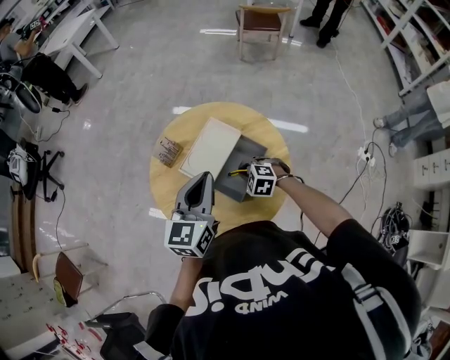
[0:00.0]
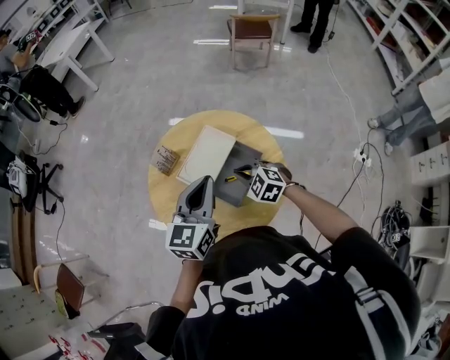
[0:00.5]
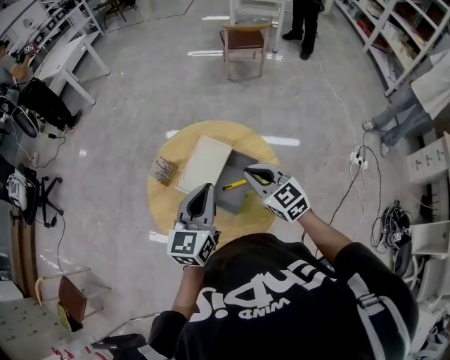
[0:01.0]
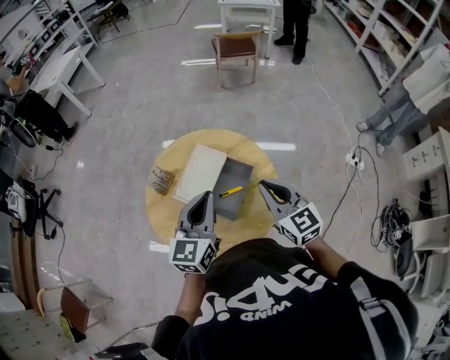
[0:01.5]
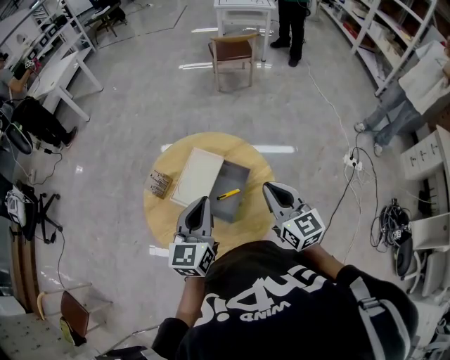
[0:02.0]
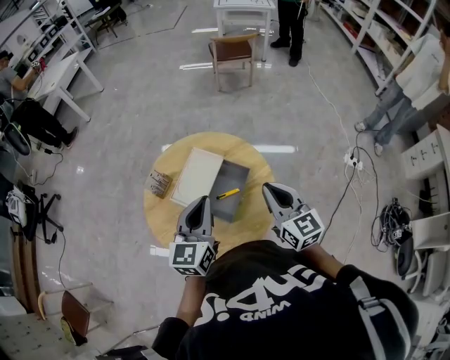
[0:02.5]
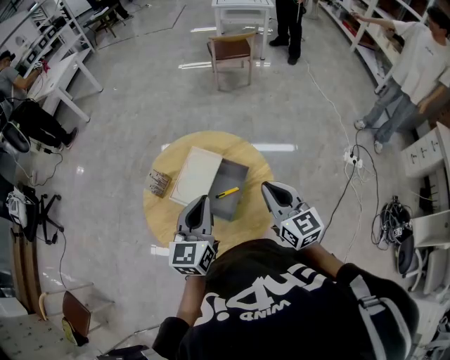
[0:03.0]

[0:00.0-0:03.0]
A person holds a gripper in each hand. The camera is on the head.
0:00.0 to 0:01.5: The right gripper travels upward by approximately 25 cm, and points its fingers roughly 50 degrees further upward.
0:01.5 to 0:03.0: The grippers make only small movements.

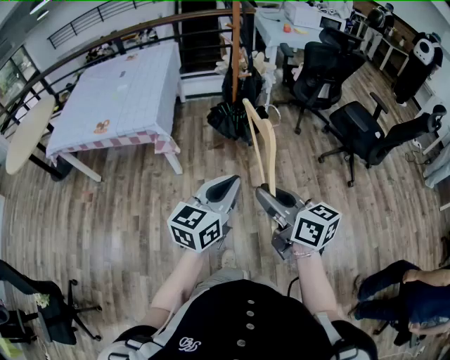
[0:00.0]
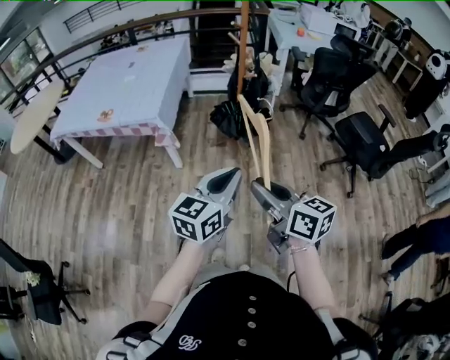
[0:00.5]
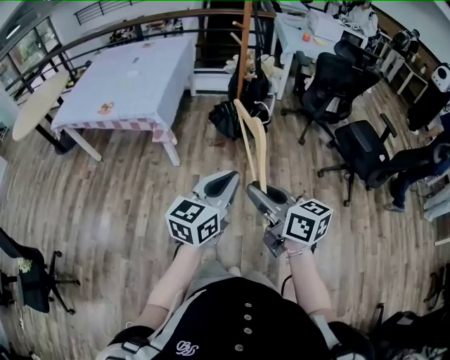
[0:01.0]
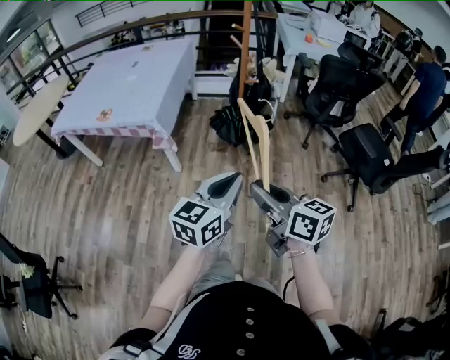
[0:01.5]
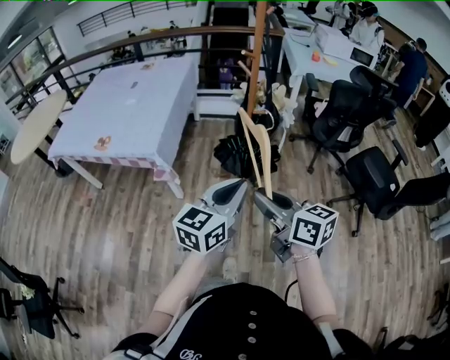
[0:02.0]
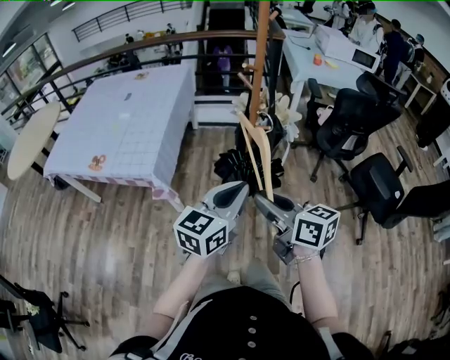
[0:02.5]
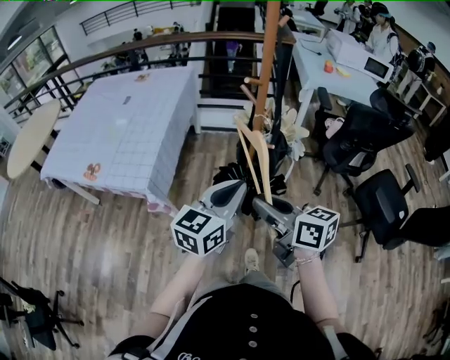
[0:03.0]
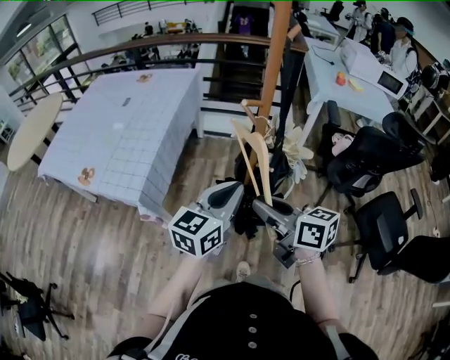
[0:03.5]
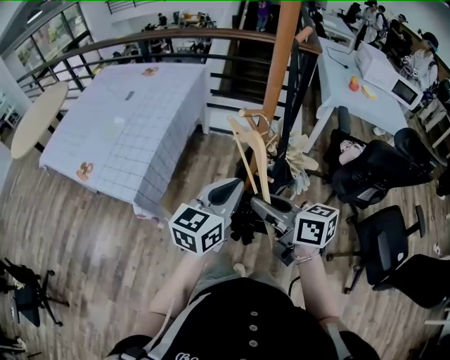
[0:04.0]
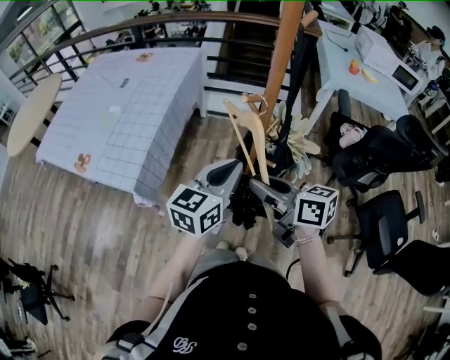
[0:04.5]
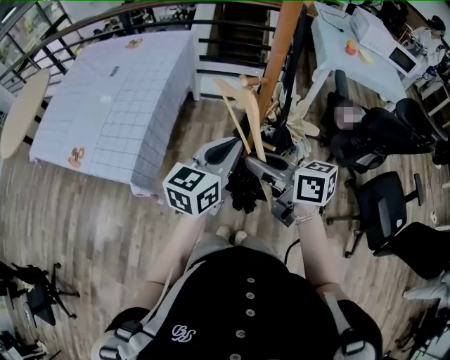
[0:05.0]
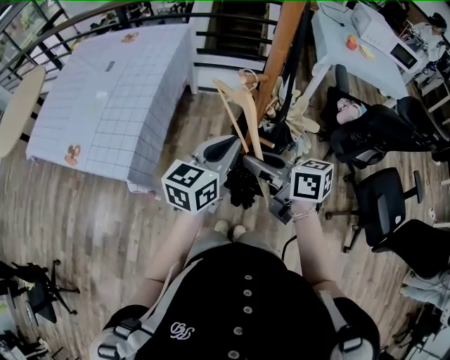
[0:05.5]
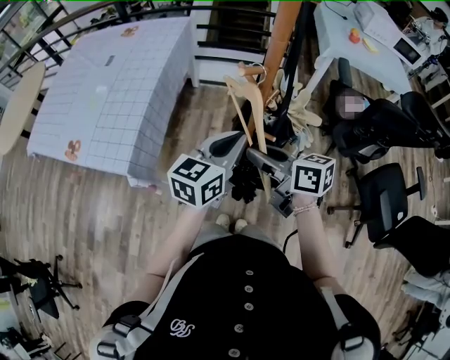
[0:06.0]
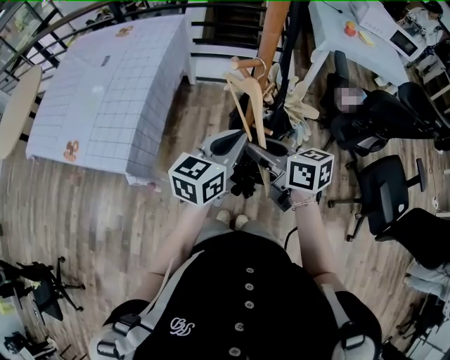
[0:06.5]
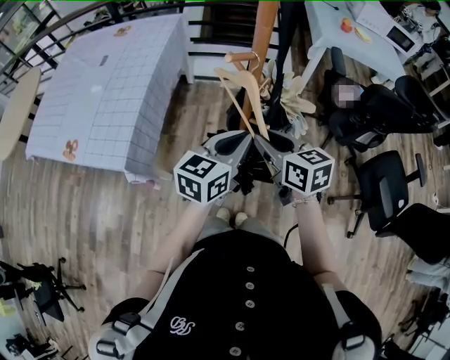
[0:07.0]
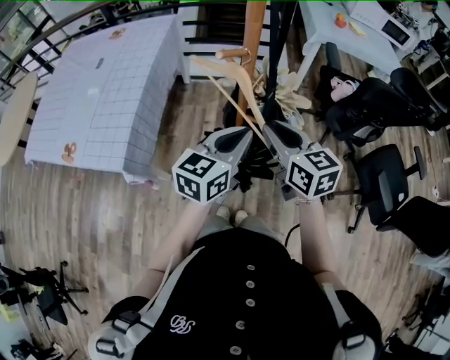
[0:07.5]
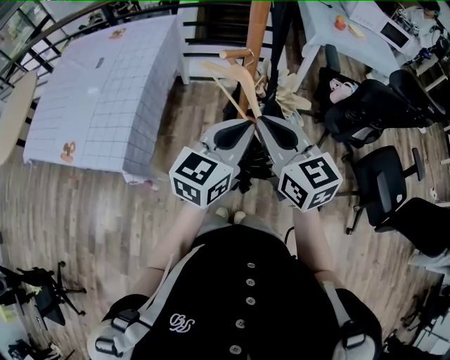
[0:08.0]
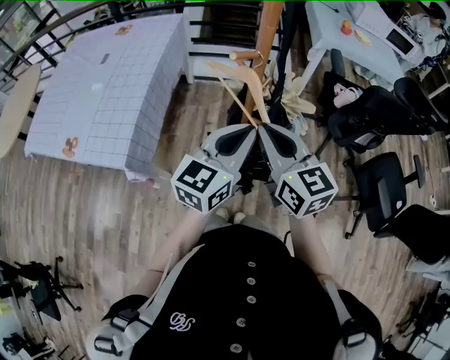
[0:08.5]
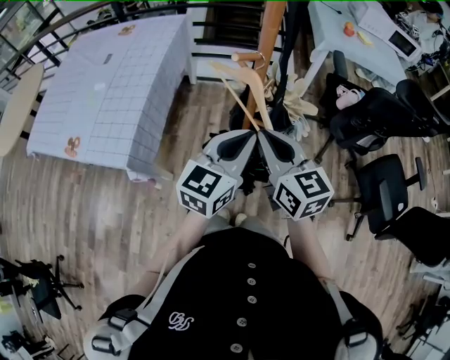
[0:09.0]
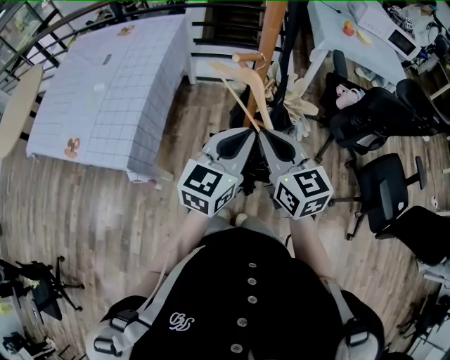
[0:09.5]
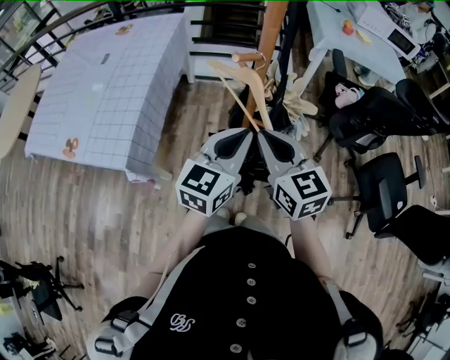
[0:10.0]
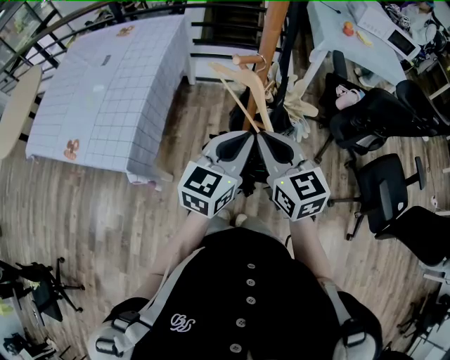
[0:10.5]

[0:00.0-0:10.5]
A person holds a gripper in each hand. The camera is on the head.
0:00.0 to 0:02.0: Both grippers travel together forward, about 20 cm.
0:02.0 to 0:04.0: The two grippers go about 35 cm forward.
0:04.0 to 0:06.5: The right gripper changes place by some 5 cm.
0:06.5 to 0:08.5: The left gripper heads upward, covering some 5 cm; the right gripper shifts roughly 10 cm upward, swivels some 30 degrees, and closes.
0:08.5 to 0:10.5: The grippers stay close to where they were, moving slightly.

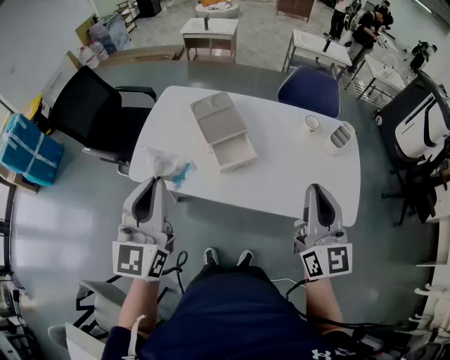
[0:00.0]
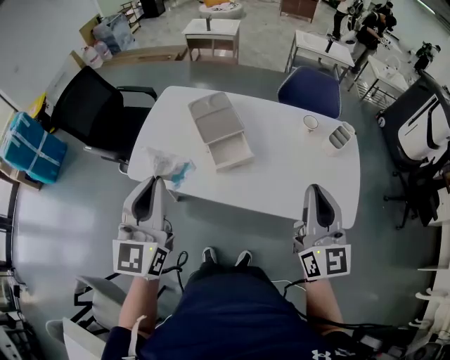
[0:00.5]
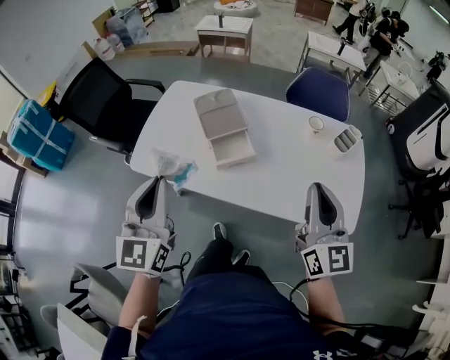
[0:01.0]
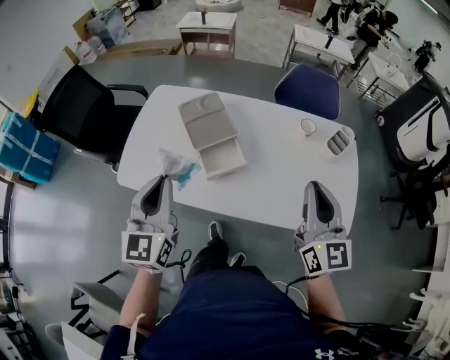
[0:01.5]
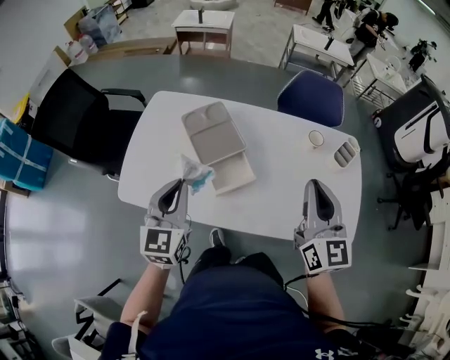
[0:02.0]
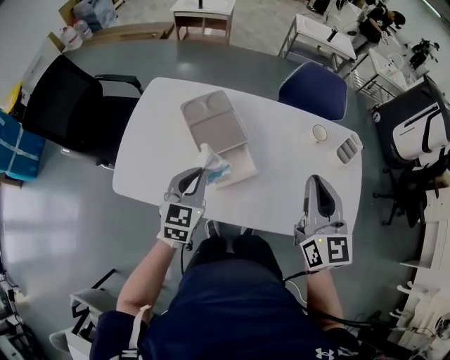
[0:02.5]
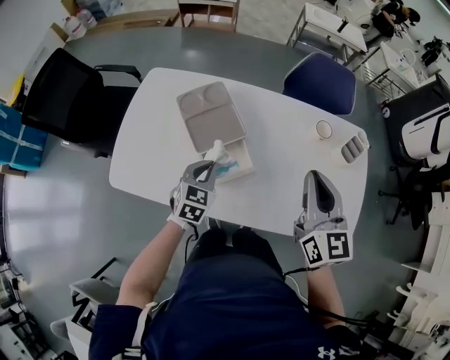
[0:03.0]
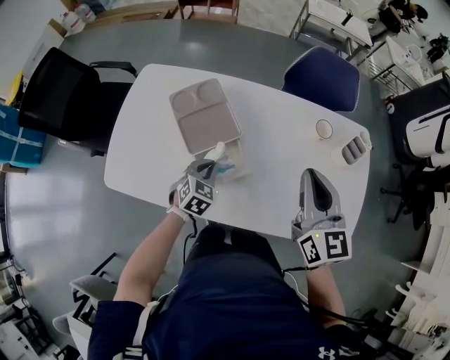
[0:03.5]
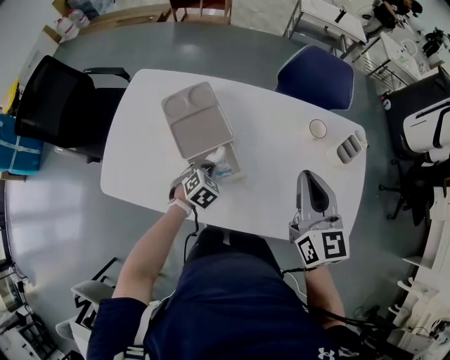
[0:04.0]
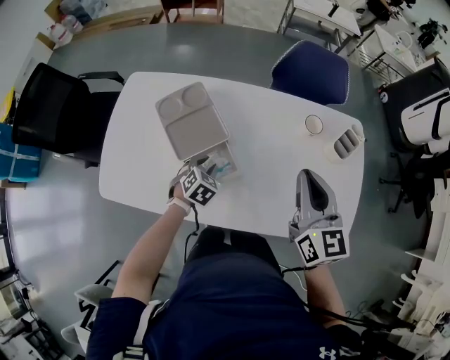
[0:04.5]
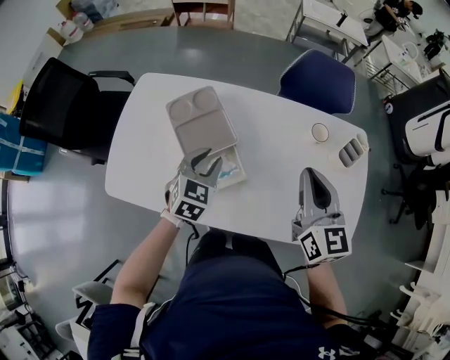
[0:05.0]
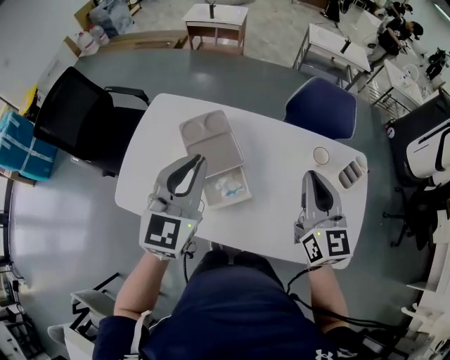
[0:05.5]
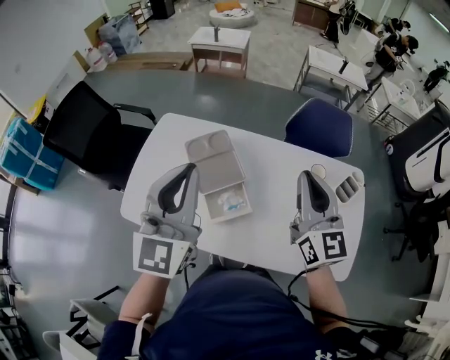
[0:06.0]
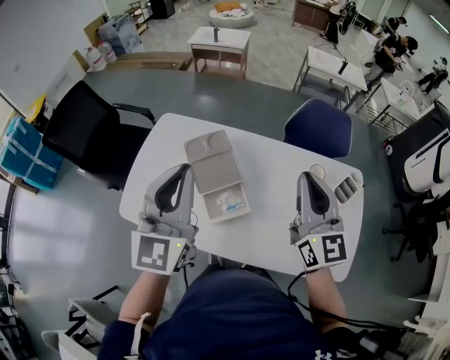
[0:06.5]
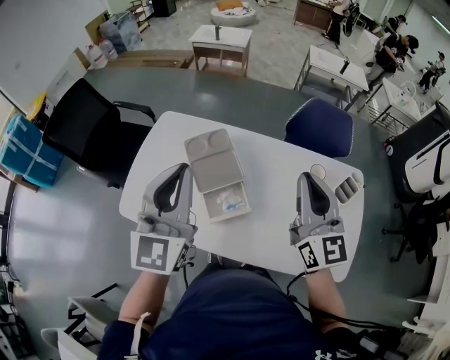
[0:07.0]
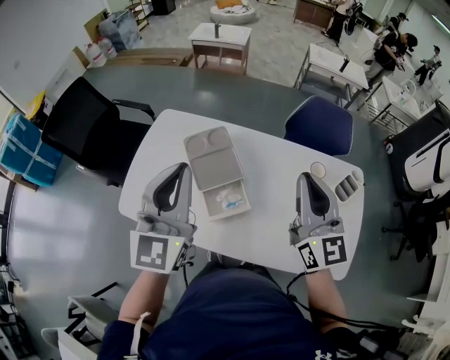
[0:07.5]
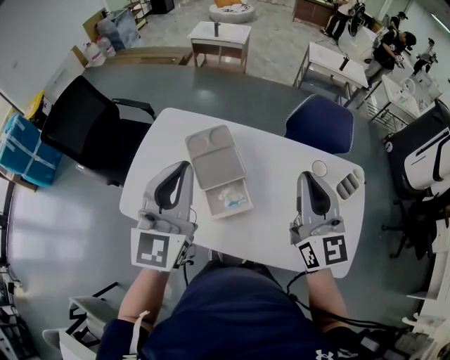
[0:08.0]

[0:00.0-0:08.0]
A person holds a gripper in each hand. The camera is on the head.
0:00.0 to 0:02.0: The left gripper moves forward and downward, approximately 20 cm; the right gripper heads forward, covering about 15 cm.
0:02.0 to 0:04.0: The left gripper goes approximately 30 cm downward and to the right, and tips its fingers downward by approximately 50 degrees. Meanwhile the right gripper heads forward and downward, covering roughly 10 cm.
0:04.0 to 0:06.0: The right gripper goes roughly 10 cm upward. The left gripper heads upward, covering about 50 cm, points its fingers some 60 degrees further upward, and opens, then closes once more.
0:06.0 to 0:08.0: The grippers make only small movements.

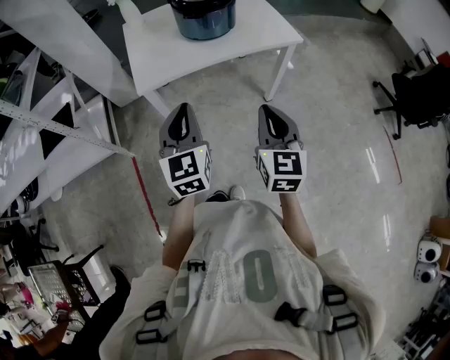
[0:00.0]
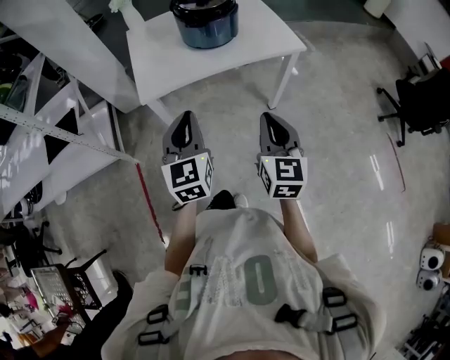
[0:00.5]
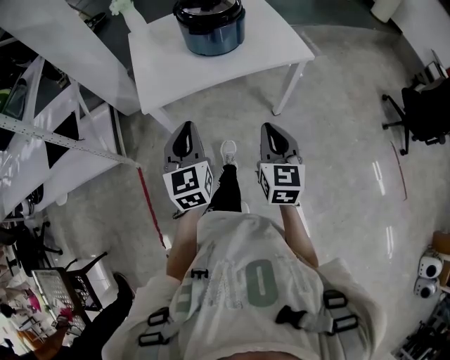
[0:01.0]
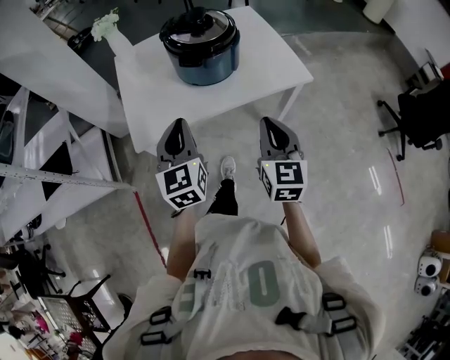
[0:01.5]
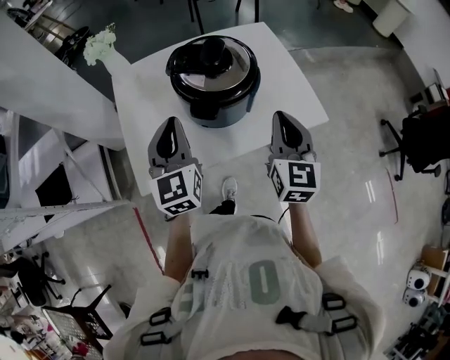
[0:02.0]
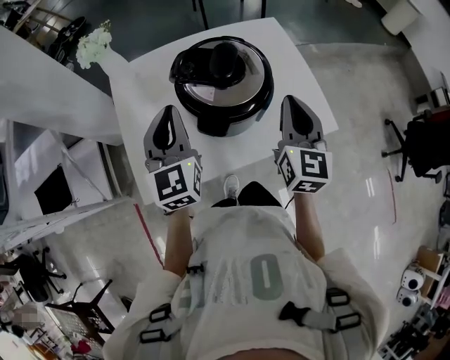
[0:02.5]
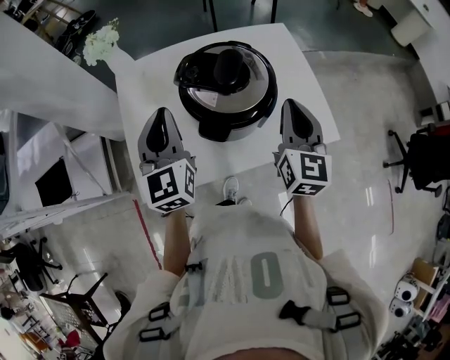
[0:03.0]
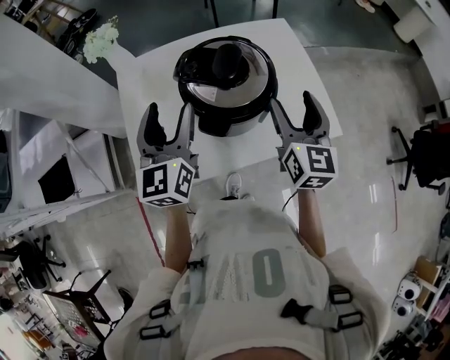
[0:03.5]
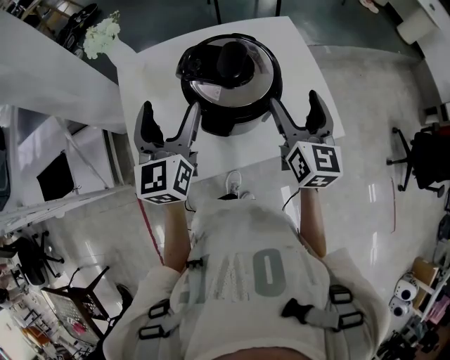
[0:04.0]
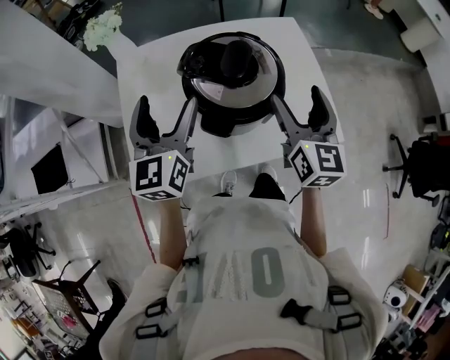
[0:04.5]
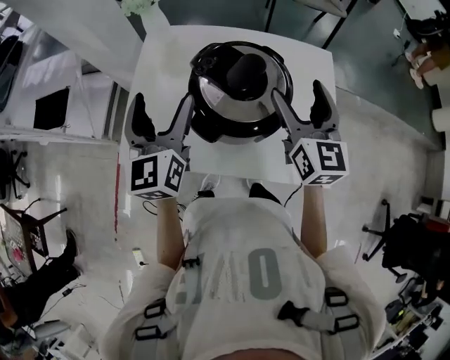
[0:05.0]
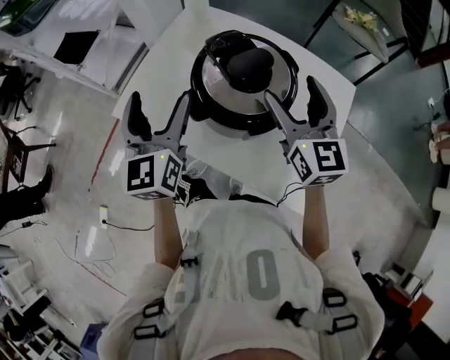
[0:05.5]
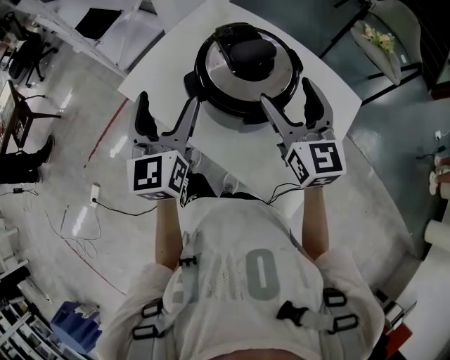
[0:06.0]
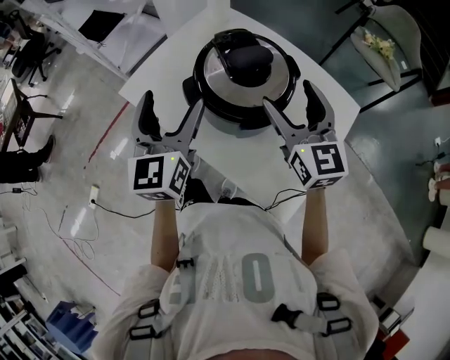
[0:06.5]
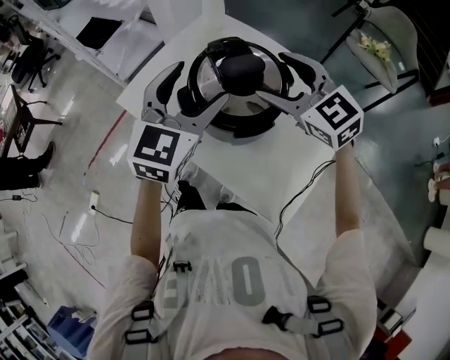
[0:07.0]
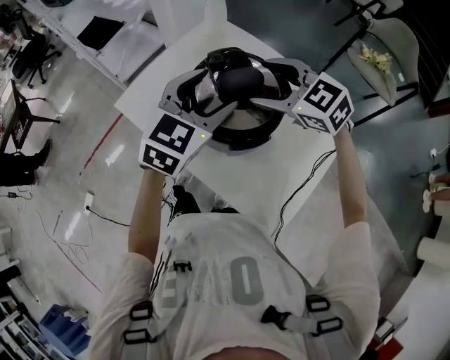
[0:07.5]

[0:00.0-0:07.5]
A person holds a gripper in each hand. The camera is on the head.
0:00.0 to 0:02.0: Both grippers travel together forward, about 40 cm.
0:02.0 to 0:04.0: The two grippers go about 10 cm forward. The right gripper opens up. The left gripper opens.
0:04.0 to 0:05.5: The left gripper moves approximately 10 cm, and swivels roughly 40 degrees. Meanwhile the right gripper changes place by roughly 10 cm, and rotates roughly 50 degrees.
0:05.5 to 0:07.5: The left gripper is displaced to the right by about 15 cm, and rotates about 30 degrees. The right gripper shifts some 5 cm forward, and changes its angle by some 60 degrees.
